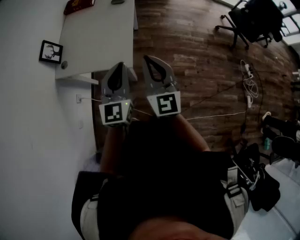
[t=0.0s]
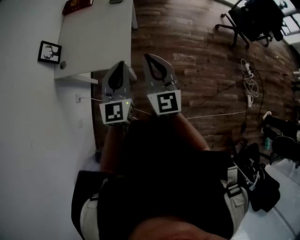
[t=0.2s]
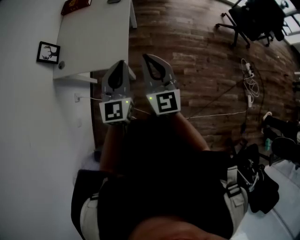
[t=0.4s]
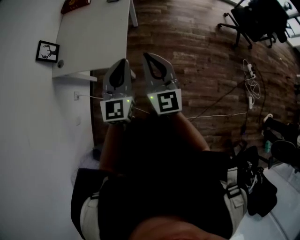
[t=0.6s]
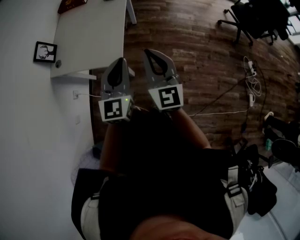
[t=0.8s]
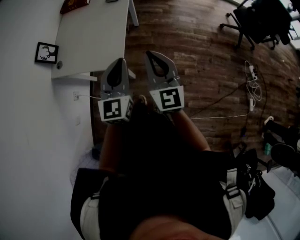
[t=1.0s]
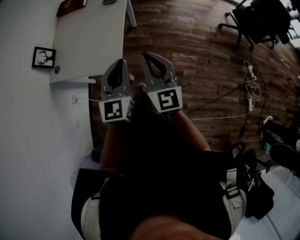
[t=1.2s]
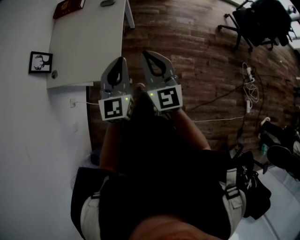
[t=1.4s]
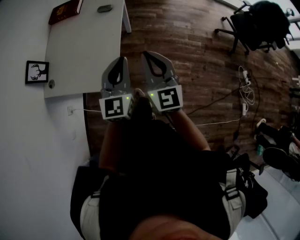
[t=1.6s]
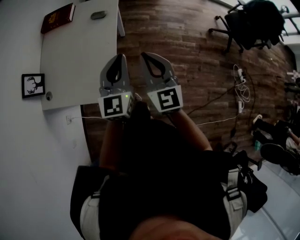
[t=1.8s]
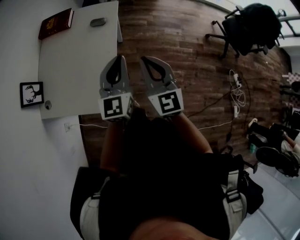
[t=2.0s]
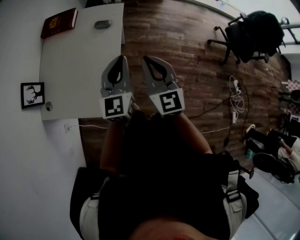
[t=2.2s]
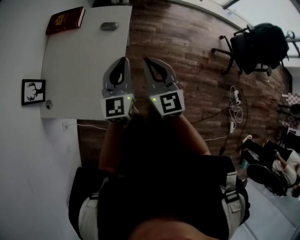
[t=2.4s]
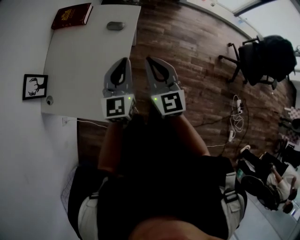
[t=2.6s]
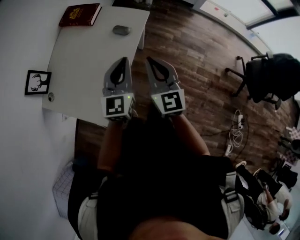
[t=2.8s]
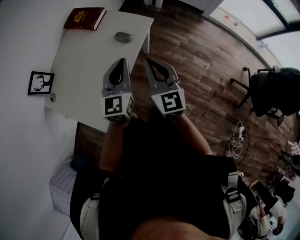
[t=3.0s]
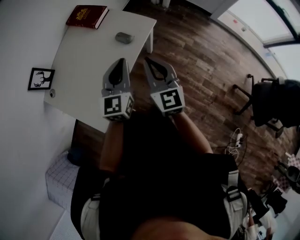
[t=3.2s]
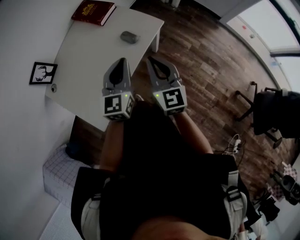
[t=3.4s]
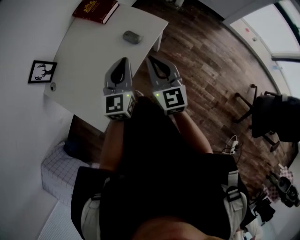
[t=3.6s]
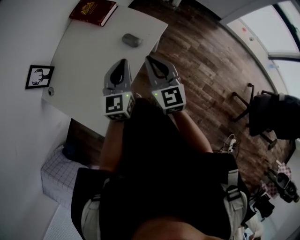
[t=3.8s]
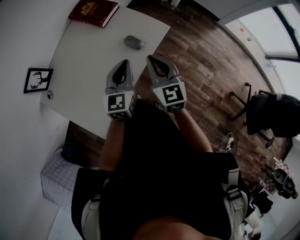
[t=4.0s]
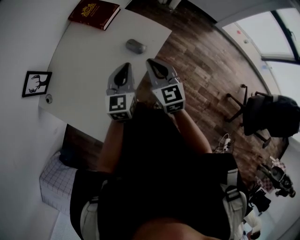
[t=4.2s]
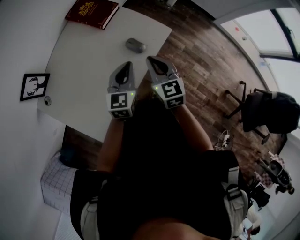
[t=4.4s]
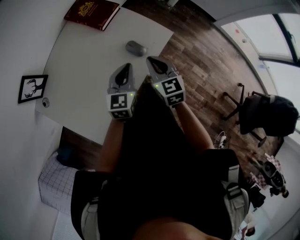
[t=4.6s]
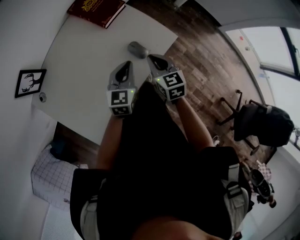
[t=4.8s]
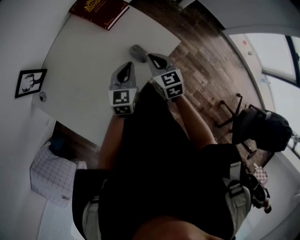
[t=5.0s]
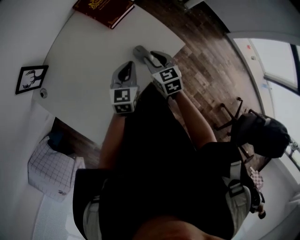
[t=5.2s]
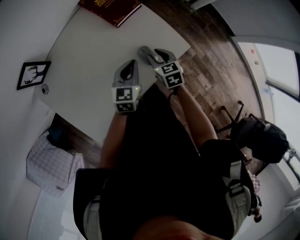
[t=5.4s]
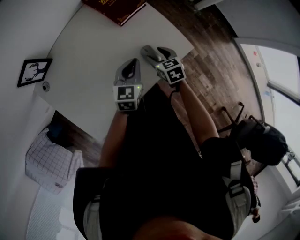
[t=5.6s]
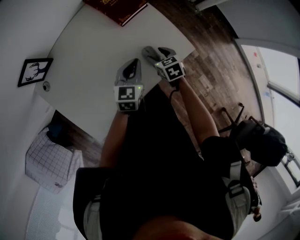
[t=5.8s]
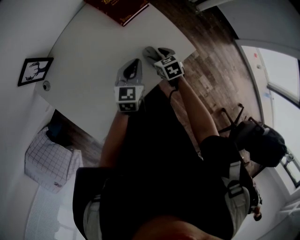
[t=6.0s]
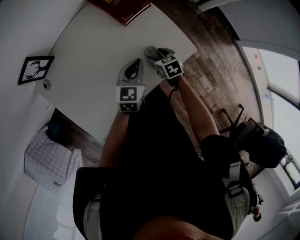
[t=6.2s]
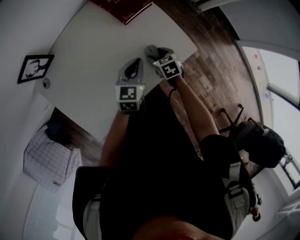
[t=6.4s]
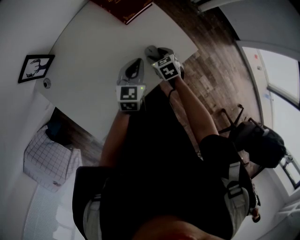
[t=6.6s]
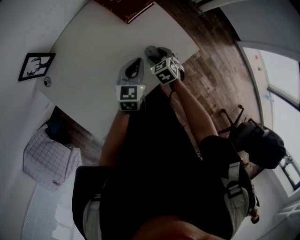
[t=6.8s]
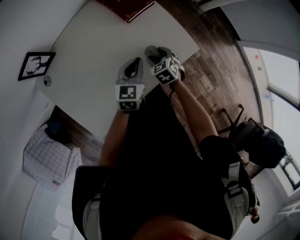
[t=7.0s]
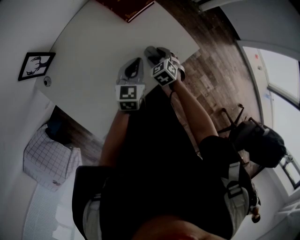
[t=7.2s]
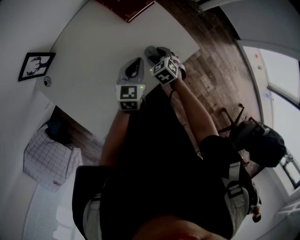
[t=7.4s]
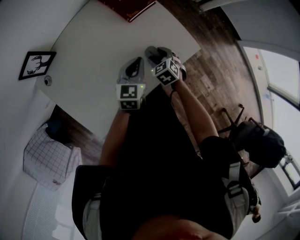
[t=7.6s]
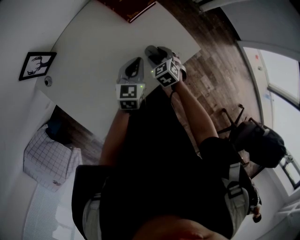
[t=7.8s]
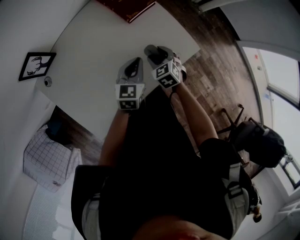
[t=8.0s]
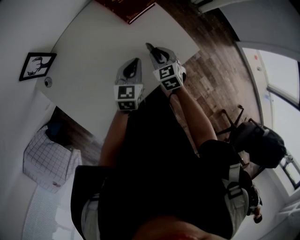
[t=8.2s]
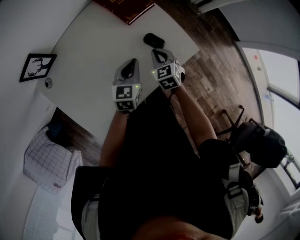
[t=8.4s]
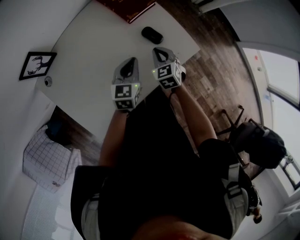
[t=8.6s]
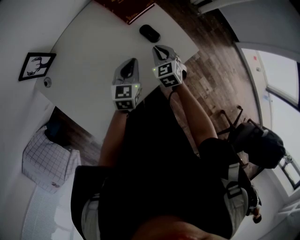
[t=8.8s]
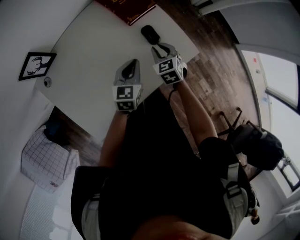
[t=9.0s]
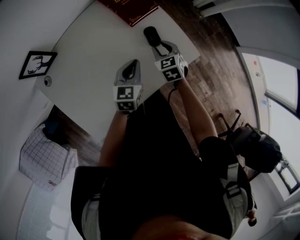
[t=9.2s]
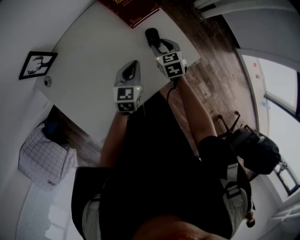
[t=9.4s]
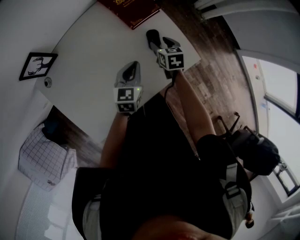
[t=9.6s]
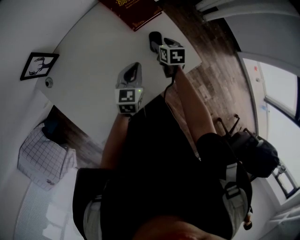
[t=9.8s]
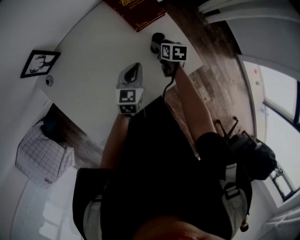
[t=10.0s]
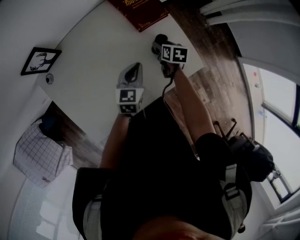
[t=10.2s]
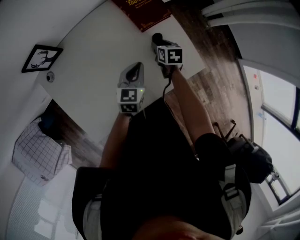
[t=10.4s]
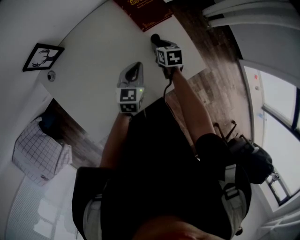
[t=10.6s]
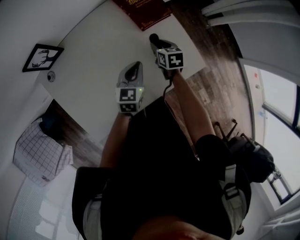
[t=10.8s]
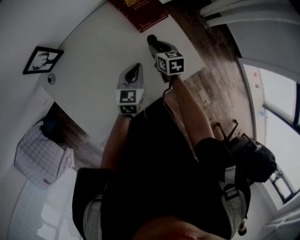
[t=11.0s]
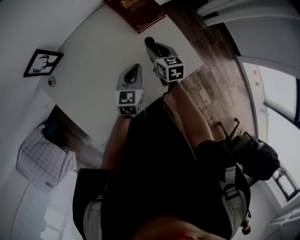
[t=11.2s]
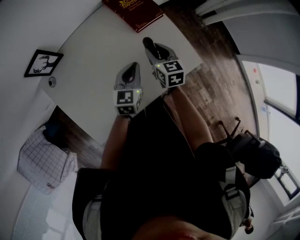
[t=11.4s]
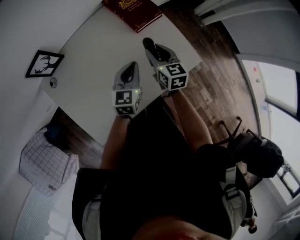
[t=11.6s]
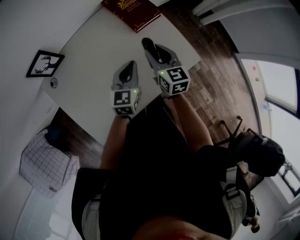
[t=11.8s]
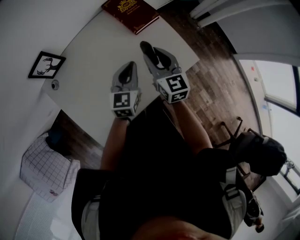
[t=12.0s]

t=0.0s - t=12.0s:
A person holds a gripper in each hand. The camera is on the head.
t=0.0s - t=1.6s: Both grippers travel together forward and to the right, approximately 20 cm.
t=1.6s - t=3.0s: The grippers both shift forward by some 30 cm. The left gripper swivels roughly 20 degrees; the right gripper rotates roughly 20 degrees.
t=3.0s - t=4.4s: The two grippers go some 20 cm forward and downward. The right gripper swivels roughly 20 degrees.
t=4.4s - t=6.0s: The right gripper shifts roughly 25 cm downward and forward, changes its angle by roughly 40 degrees, and opens up. Meanwhile the left gripper goes approximately 15 cm forward and downward.
t=6.0s - t=7.6s: The right gripper rotates approximately 20 degrees.
t=7.6s - t=9.0s: The right gripper heads upward and forward, covering some 5 cm, and closes up.
t=9.0s - t=10.4s: The right gripper shifts about 10 cm forward and downward, and changes its angle by about 30 degrees.
t=10.4s - t=12.0s: The right gripper is displaced upward and backward by approximately 25 cm, and angles its fingers upward, by some 40 degrees. Meanwhile the left gripper travels upward by about 10 cm.

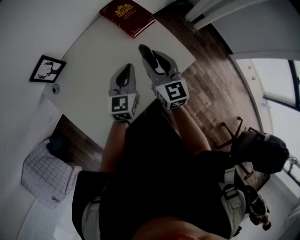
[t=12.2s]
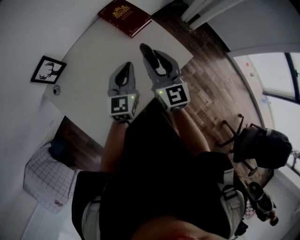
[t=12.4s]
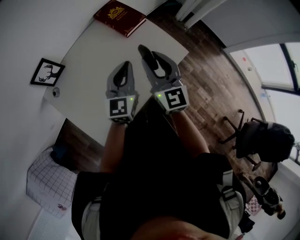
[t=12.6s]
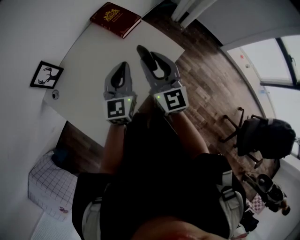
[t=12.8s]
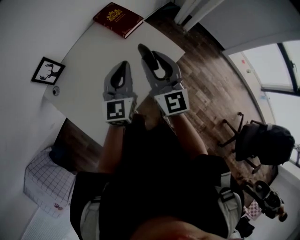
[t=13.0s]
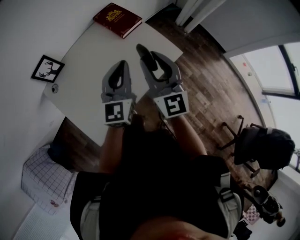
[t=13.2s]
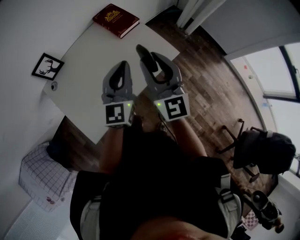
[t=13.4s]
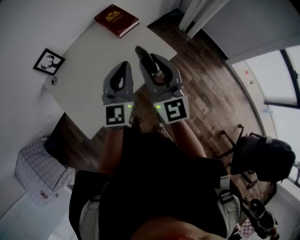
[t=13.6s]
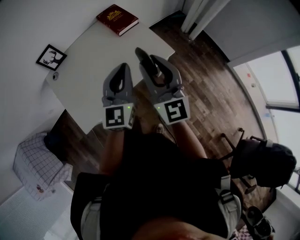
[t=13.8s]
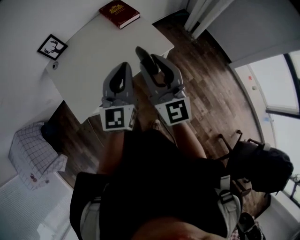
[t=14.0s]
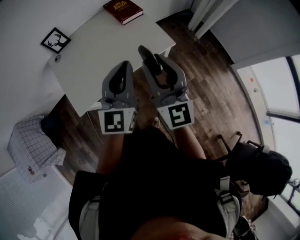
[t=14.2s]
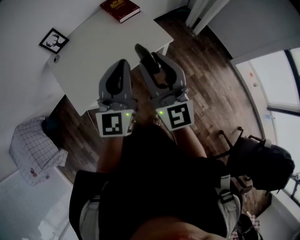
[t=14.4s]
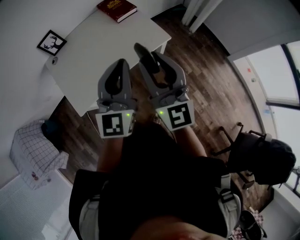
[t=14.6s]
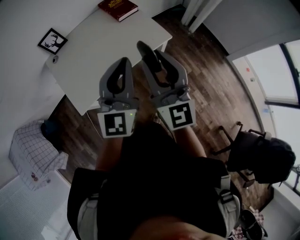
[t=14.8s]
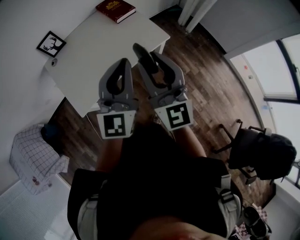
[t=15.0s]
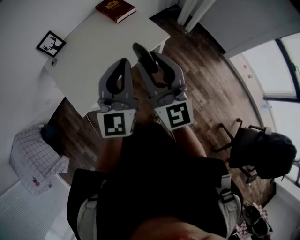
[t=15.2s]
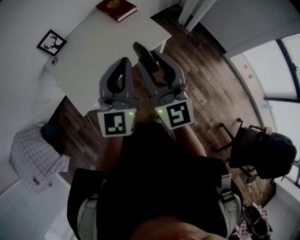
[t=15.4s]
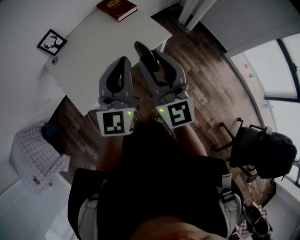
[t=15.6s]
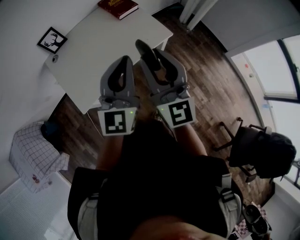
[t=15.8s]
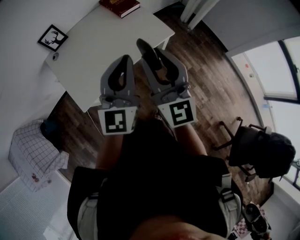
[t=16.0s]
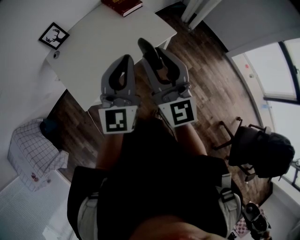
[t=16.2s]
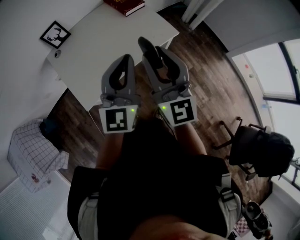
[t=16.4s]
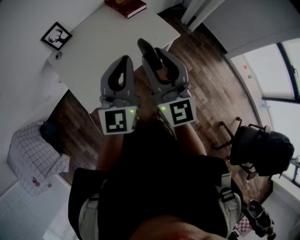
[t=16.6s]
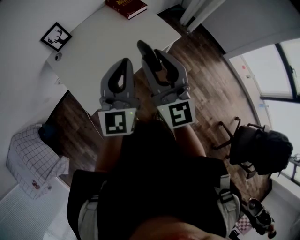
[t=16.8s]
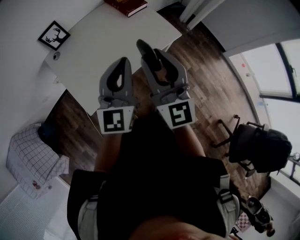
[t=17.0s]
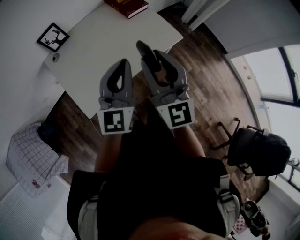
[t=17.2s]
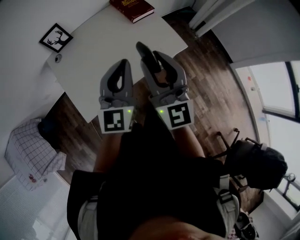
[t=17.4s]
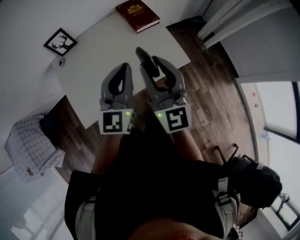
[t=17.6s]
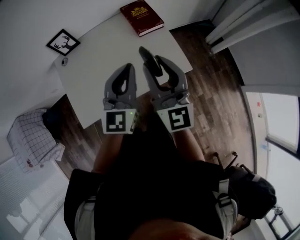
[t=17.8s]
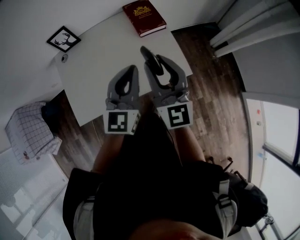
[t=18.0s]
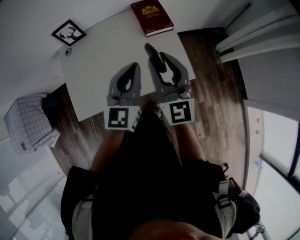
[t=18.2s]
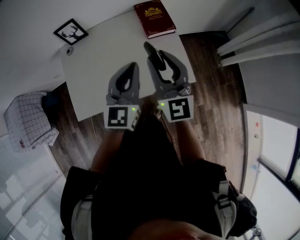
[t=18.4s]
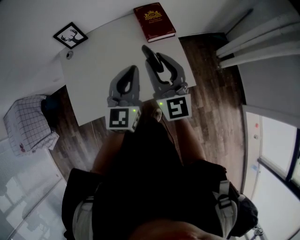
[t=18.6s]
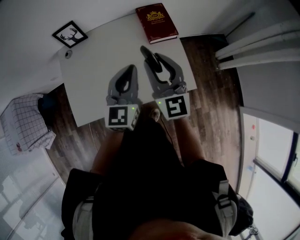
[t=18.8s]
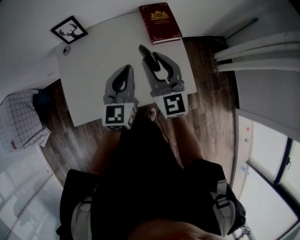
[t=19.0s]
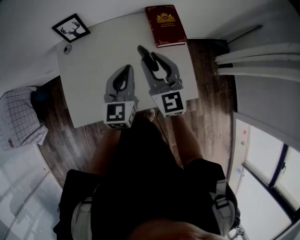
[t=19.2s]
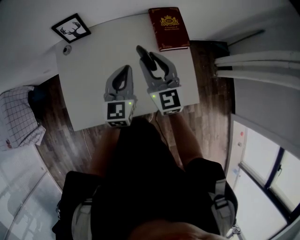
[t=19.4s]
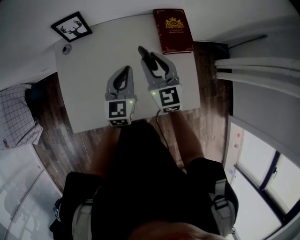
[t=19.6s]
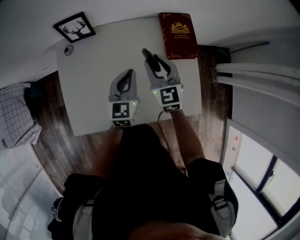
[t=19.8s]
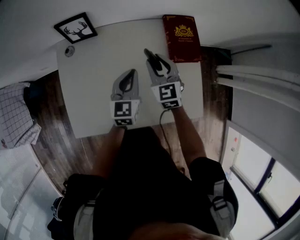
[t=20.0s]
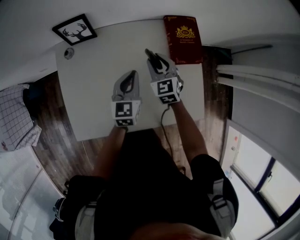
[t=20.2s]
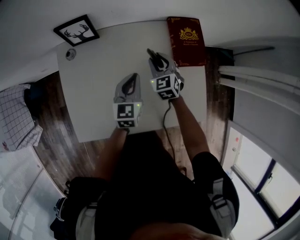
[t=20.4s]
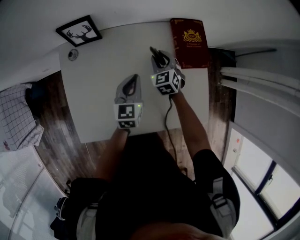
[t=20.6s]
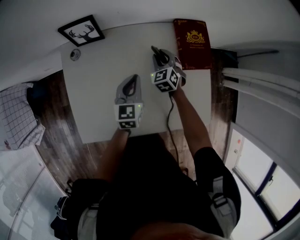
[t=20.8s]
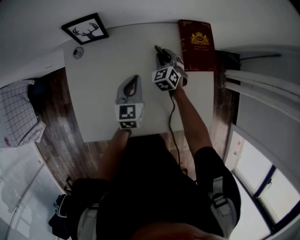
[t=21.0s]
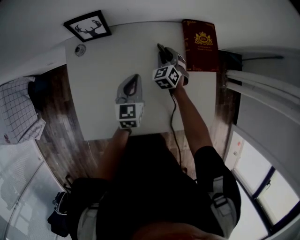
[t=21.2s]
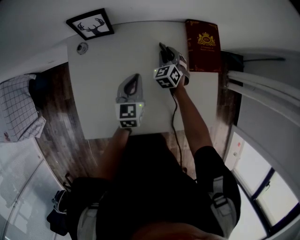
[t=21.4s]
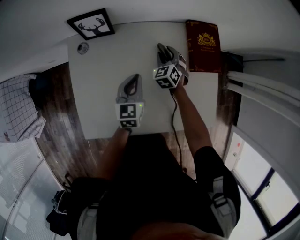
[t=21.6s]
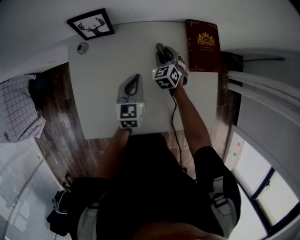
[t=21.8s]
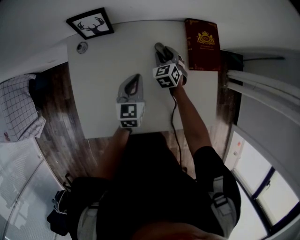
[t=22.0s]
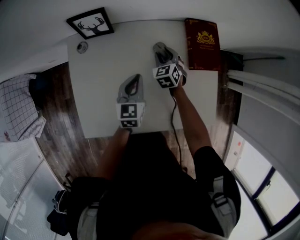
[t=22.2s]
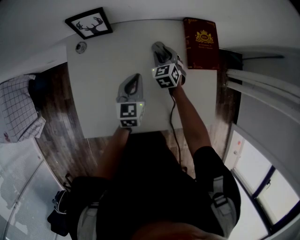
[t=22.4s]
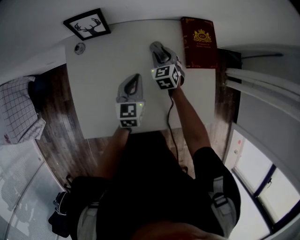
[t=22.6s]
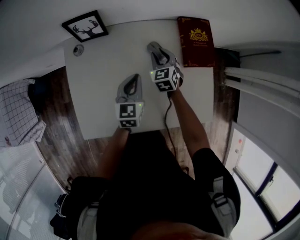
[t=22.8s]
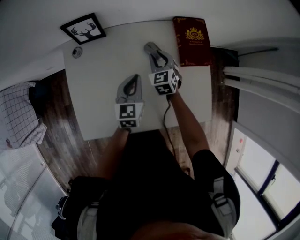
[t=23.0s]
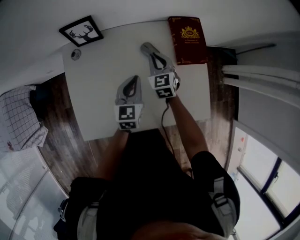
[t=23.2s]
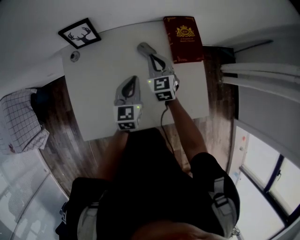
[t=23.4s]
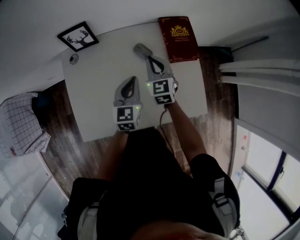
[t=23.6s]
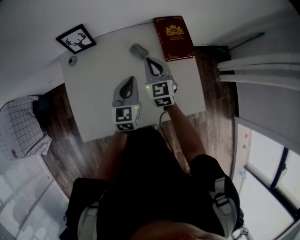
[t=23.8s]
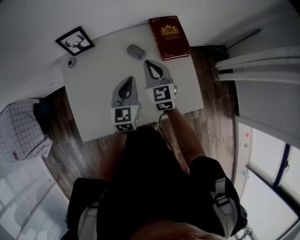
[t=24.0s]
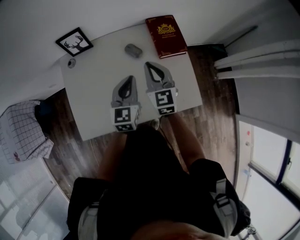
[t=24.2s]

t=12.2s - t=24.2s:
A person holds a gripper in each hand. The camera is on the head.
t=12.2s - t=13.8s: Both grippers move backward, upward and to the right, approximately 30 cm. The right gripper rotates roughly 20 degrees, while the left gripper turns by some 20 degrees.
t=13.8s - t=15.2s: The right gripper is displaced backward by about 10 cm; the left gripper shifts approximately 15 cm backward and upward.
t=15.2s - t=16.6s: Both grippers move to the left, approximately 10 cm.
t=16.6s - t=18.2s: The two grippers go roughly 25 cm forward and to the right. The left gripper changes its angle by approximately 20 degrees.
t=18.2s - t=19.8s: The grippers both shift forward, downward and to the left by approximately 30 cm. The right gripper rotates approximately 30 degrees. The left gripper changes its angle by about 20 degrees.
t=19.8s - t=21.2s: The right gripper heads downward and forward, covering some 20 cm, and rotates about 40 degrees, while the left gripper shifts approximately 10 cm downward and to the left.
t=21.2s - t=22.6s: The grippers make only small movements.
t=22.6s - t=24.2s: The right gripper shifts some 25 cm upward and backward, rotates about 30 degrees, and closes up. The left gripper is displaced upward, backward and to the right by some 15 cm.
